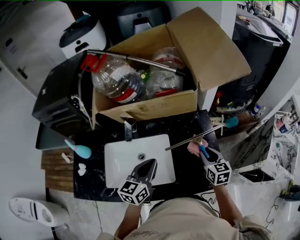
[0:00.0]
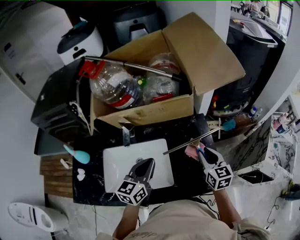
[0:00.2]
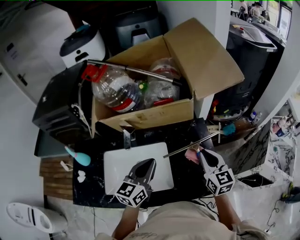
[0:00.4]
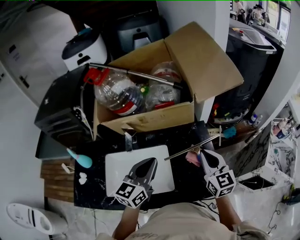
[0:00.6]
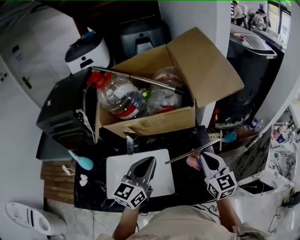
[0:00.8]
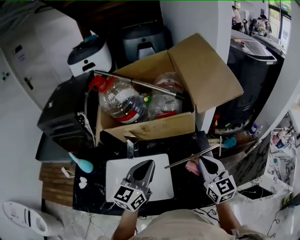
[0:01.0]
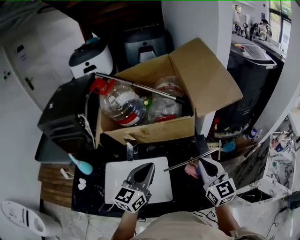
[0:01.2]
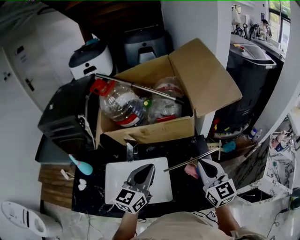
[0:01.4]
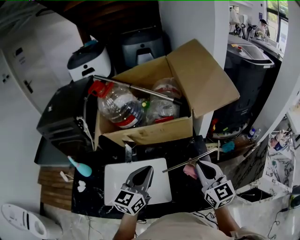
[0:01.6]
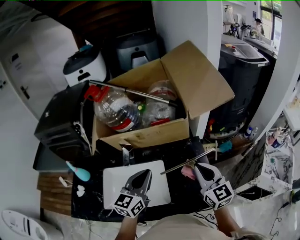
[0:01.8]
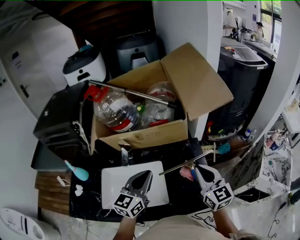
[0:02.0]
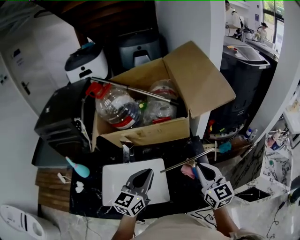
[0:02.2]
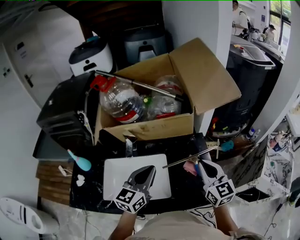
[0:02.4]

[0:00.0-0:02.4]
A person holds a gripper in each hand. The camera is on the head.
0:00.0 to 0:01.2: The left gripper travels upward by roughly 10 cm; the right gripper travels upward by approximately 20 cm, turns by roughly 30 degrees, and closes up.
0:01.2 to 0:02.4: There are only small adjustments of the grippers.

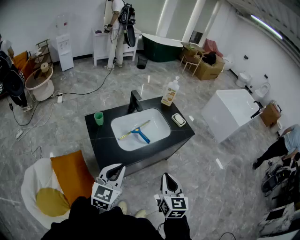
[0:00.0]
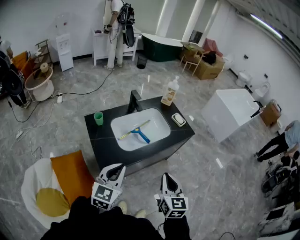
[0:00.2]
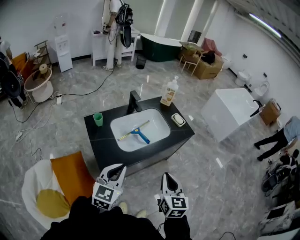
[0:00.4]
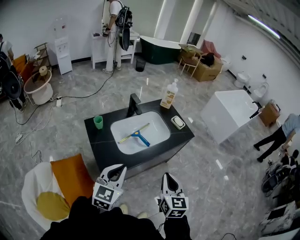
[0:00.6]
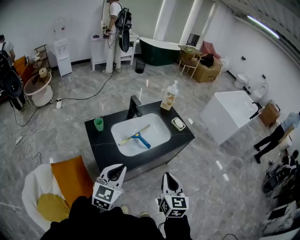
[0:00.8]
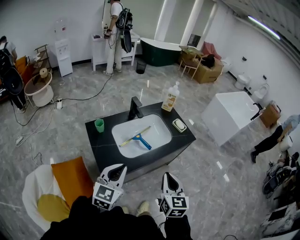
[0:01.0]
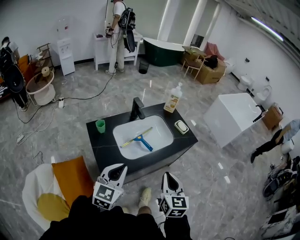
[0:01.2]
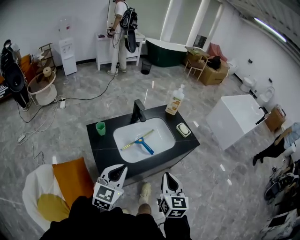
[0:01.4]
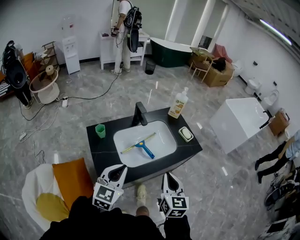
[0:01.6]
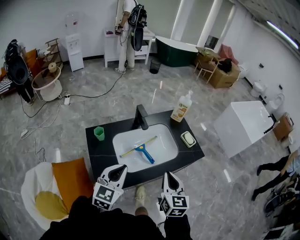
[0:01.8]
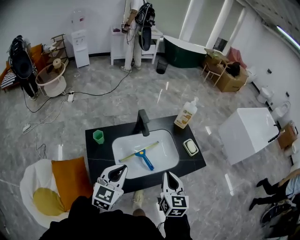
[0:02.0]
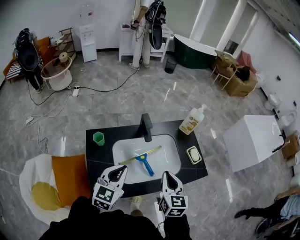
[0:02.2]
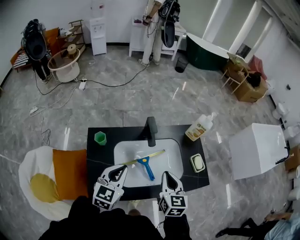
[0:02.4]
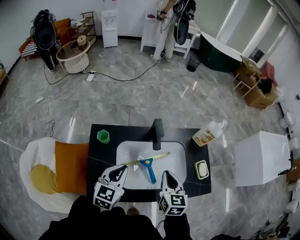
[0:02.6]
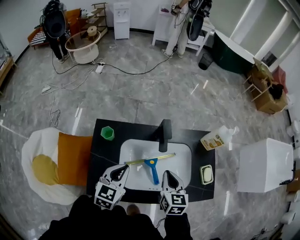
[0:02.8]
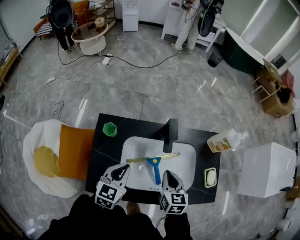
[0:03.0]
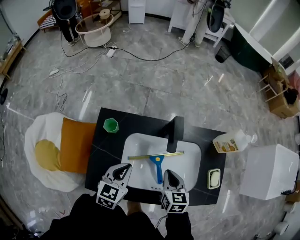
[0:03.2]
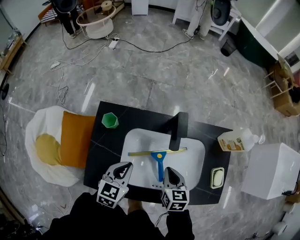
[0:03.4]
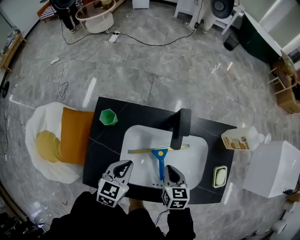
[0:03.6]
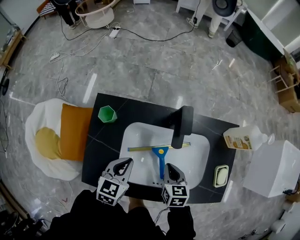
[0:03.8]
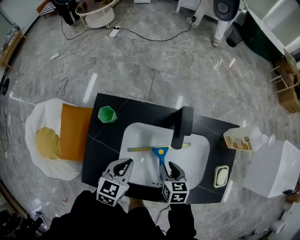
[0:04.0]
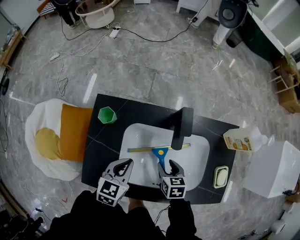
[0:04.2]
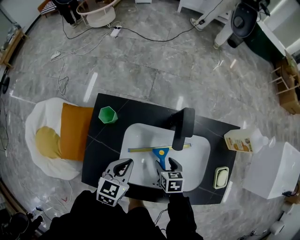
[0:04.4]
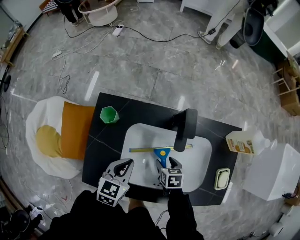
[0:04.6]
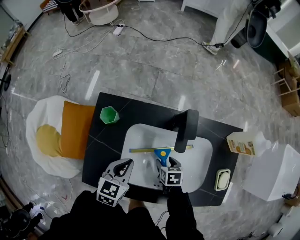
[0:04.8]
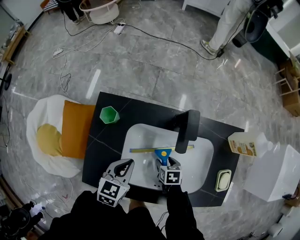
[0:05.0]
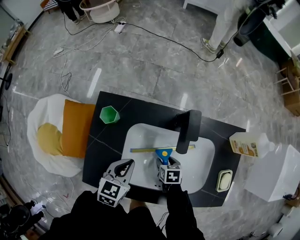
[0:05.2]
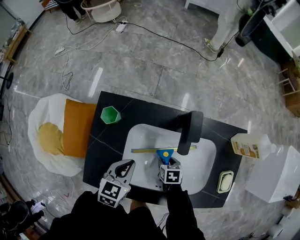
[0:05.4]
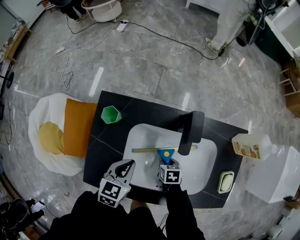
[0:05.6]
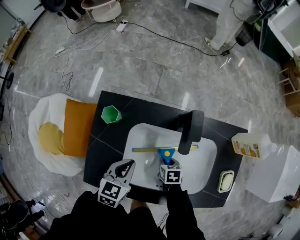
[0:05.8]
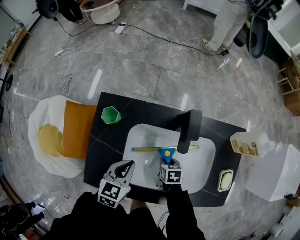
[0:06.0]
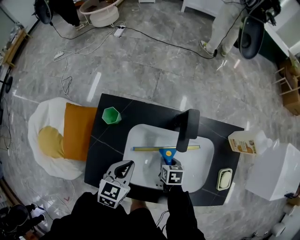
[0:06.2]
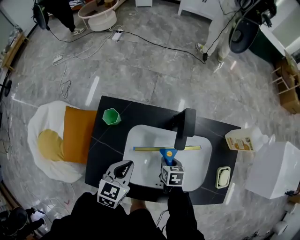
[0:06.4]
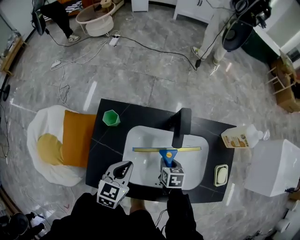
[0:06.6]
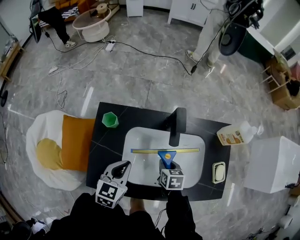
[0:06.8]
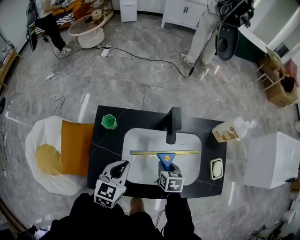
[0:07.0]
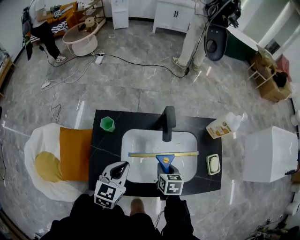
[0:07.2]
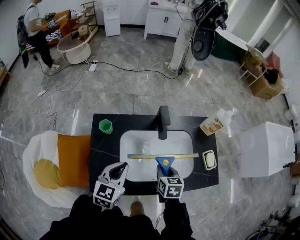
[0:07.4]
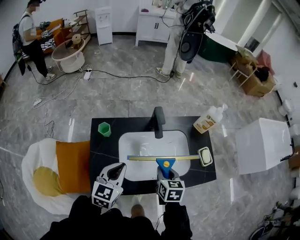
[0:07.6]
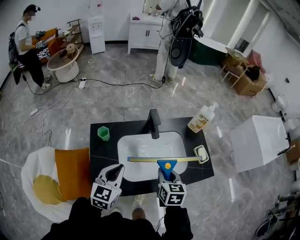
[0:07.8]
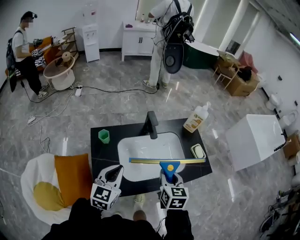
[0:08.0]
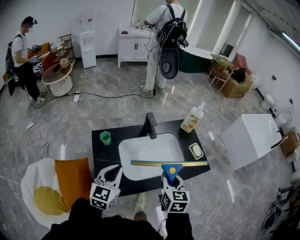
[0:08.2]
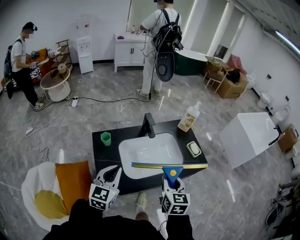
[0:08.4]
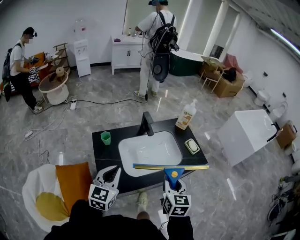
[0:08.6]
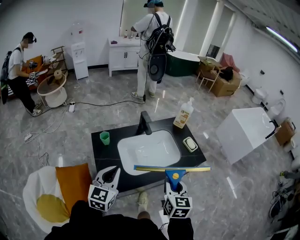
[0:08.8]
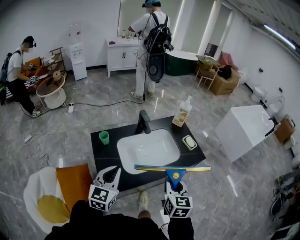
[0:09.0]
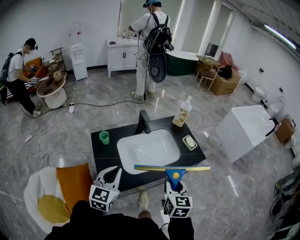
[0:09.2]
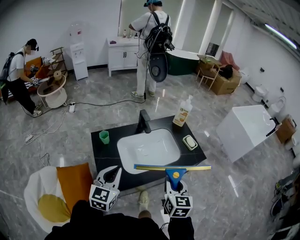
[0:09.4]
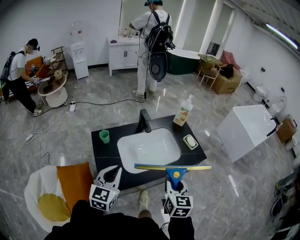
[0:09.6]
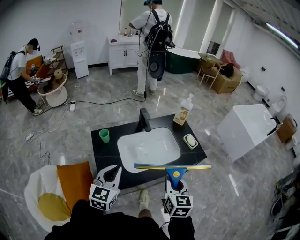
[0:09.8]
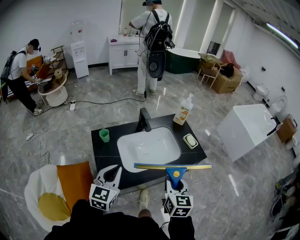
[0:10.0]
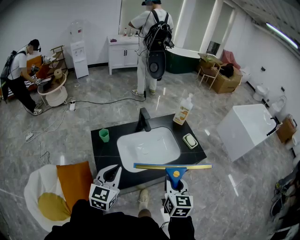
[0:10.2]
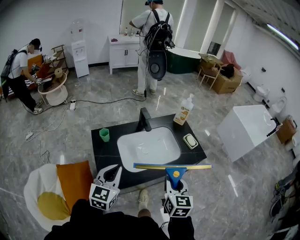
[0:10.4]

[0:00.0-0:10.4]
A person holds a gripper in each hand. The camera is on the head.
0:00.0 to 0:01.4: Both grippers move forward, roughly 10 cm.
0:01.4 to 0:03.0: The left gripper changes place by about 30 cm, and turns by approximately 30 degrees. Meanwhile the right gripper changes place by roughly 40 cm, and rotates some 40 degrees.
0:03.0 to 0:04.4: The left gripper moves downward, some 10 cm; the right gripper travels downward by approximately 20 cm, changes its angle by some 30 degrees, and opens its fingers.
0:04.4 to 0:06.0: The right gripper shifts about 5 cm downward, and closes.
0:06.0 to 0:07.4: The left gripper shifts approximately 15 cm upward. Meanwhile the right gripper travels upward by roughly 20 cm, and turns by approximately 30 degrees.
0:07.4 to 0:09.0: The grippers both shift backward and upward by some 25 cm. The right gripper turns by about 40 degrees.
0:09.0 to 0:10.4: The two grippers keep their place.

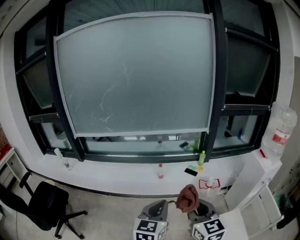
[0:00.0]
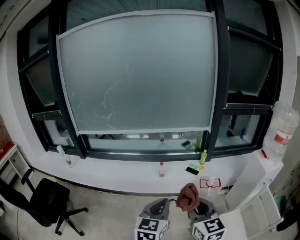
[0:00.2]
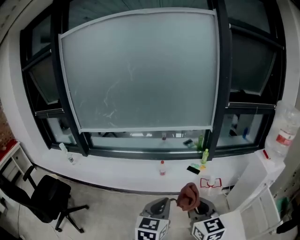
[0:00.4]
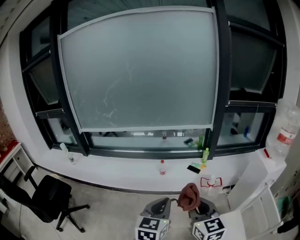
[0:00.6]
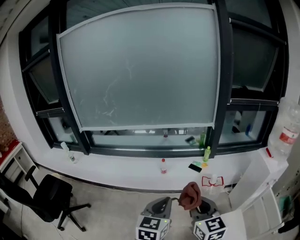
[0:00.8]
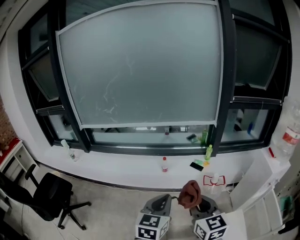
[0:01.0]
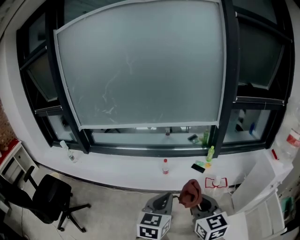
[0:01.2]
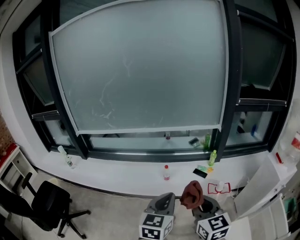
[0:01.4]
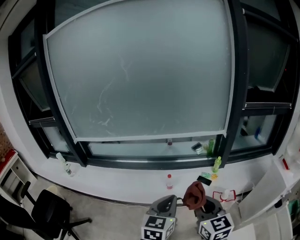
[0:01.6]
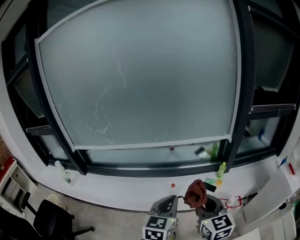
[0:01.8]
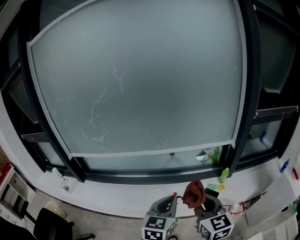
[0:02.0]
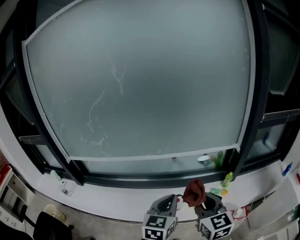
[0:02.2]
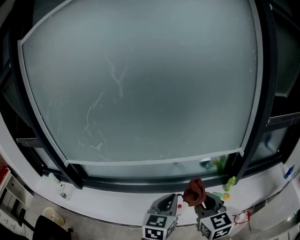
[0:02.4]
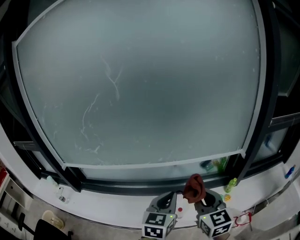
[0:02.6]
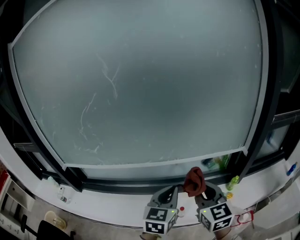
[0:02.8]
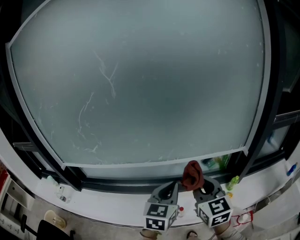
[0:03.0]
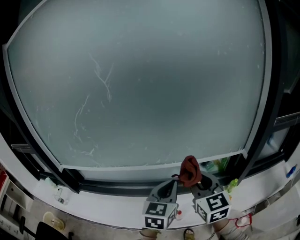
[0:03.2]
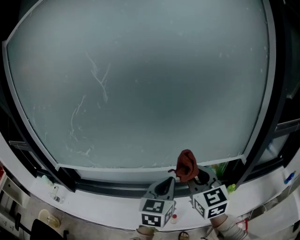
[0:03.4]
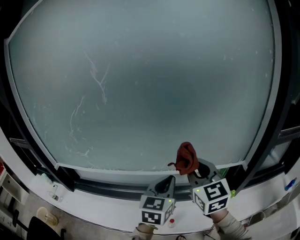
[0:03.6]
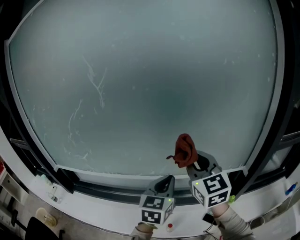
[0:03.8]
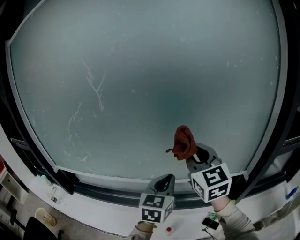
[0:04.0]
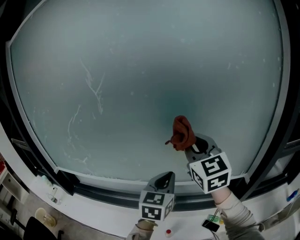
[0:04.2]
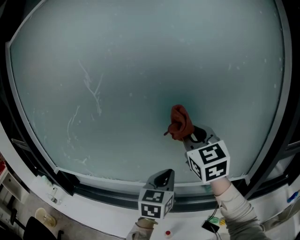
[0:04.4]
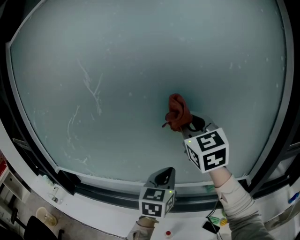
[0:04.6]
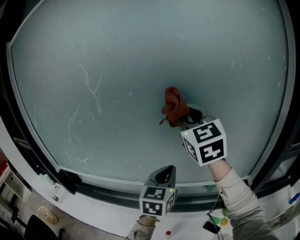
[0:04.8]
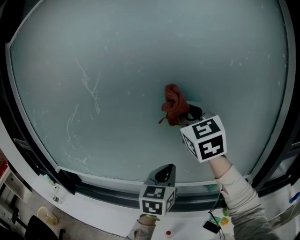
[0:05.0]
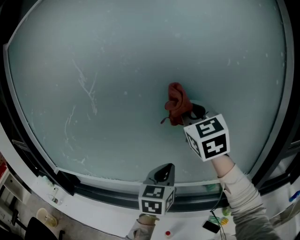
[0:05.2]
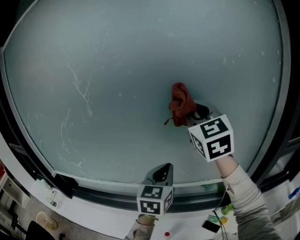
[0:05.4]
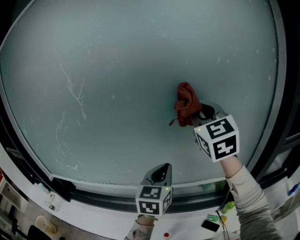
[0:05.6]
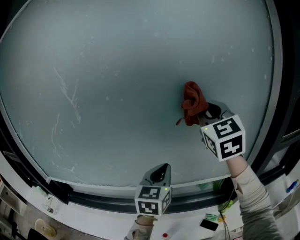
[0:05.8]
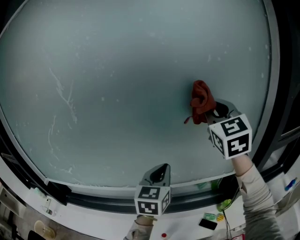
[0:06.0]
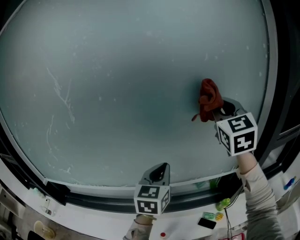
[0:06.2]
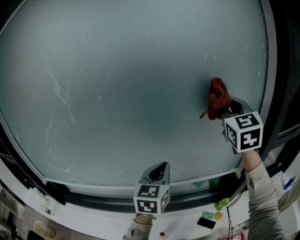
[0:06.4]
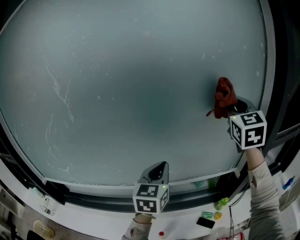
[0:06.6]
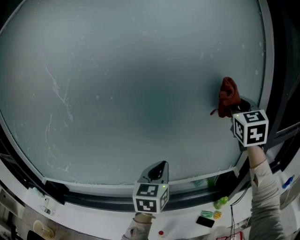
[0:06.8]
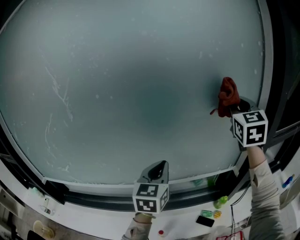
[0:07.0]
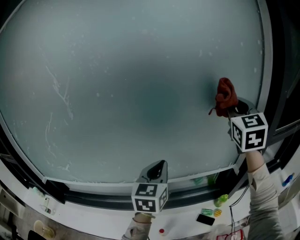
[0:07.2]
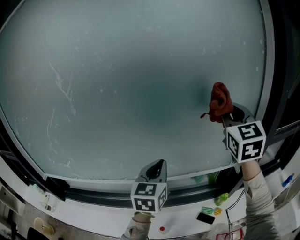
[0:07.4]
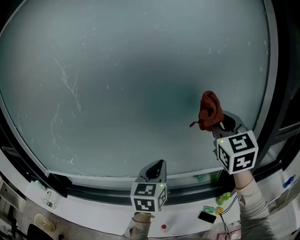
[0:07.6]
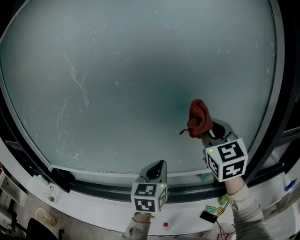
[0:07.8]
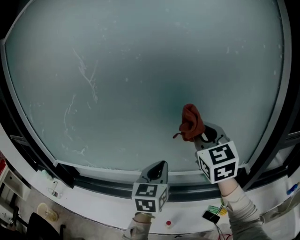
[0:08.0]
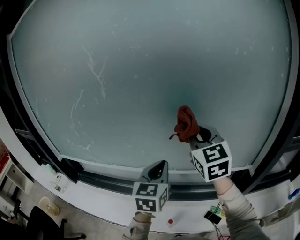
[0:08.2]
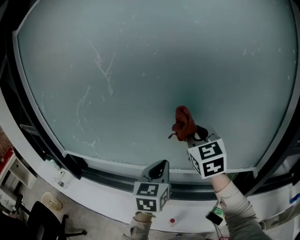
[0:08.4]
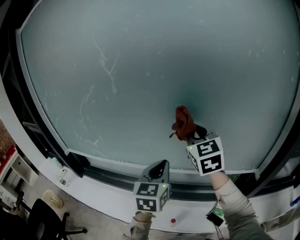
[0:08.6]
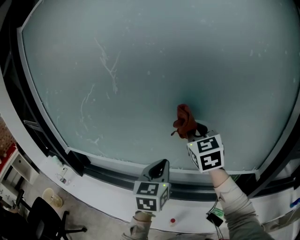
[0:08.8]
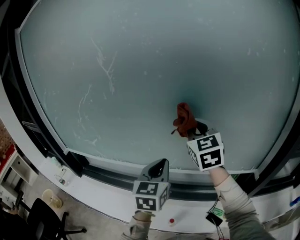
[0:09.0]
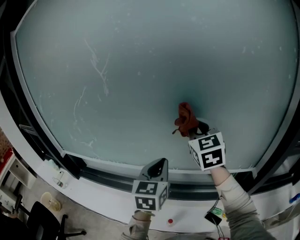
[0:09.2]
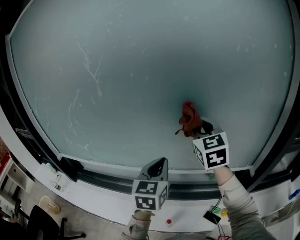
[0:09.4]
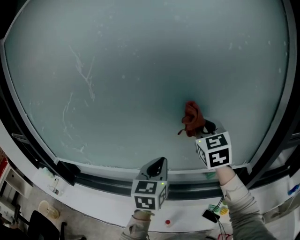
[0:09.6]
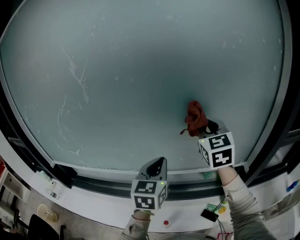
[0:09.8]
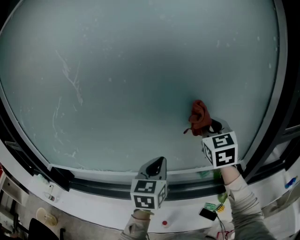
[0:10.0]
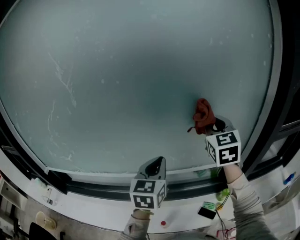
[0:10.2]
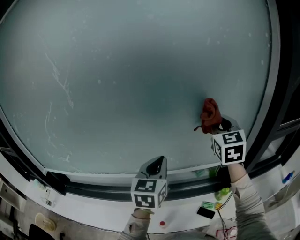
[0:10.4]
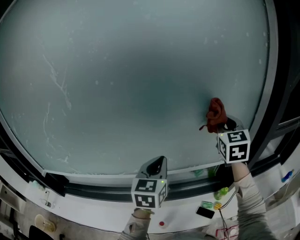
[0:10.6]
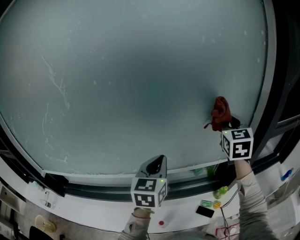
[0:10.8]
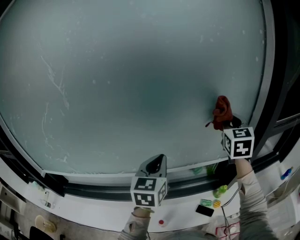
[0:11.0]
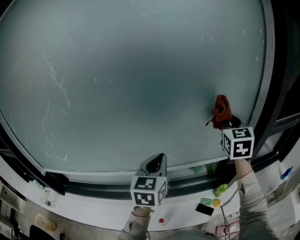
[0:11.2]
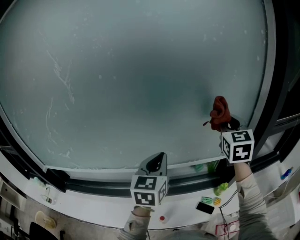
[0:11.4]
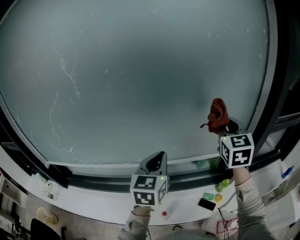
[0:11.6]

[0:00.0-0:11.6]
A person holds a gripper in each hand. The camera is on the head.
0:00.0 to 0:01.4: The grippers both shift forward by roughly 15 cm.
0:01.4 to 0:02.8: Both grippers are carried forward, approximately 50 cm.
0:02.8 to 0:04.4: The left gripper moves forward, some 20 cm. Meanwhile the right gripper goes approximately 35 cm forward and upward, and swivels some 20 degrees.
0:04.4 to 0:05.8: The right gripper travels to the right by approximately 10 cm. Meanwhile the left gripper ends up approximately 5 cm from where it was.
0:05.8 to 0:07.2: The right gripper moves to the right, some 15 cm.
0:07.2 to 0:08.8: The right gripper travels to the left and downward by roughly 30 cm, and rotates some 30 degrees; the left gripper goes some 10 cm to the left.
0:08.8 to 0:10.2: The right gripper travels to the right by roughly 20 cm, and turns by approximately 20 degrees, while the left gripper heads to the right, covering some 10 cm.
0:10.2 to 0:11.6: The right gripper moves to the right, roughly 5 cm.
